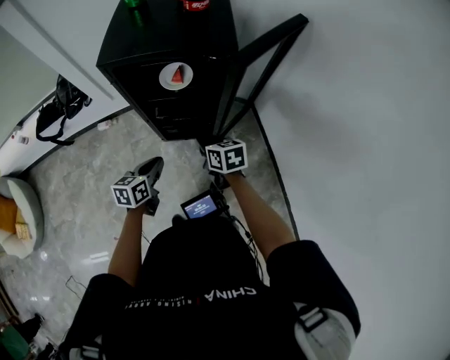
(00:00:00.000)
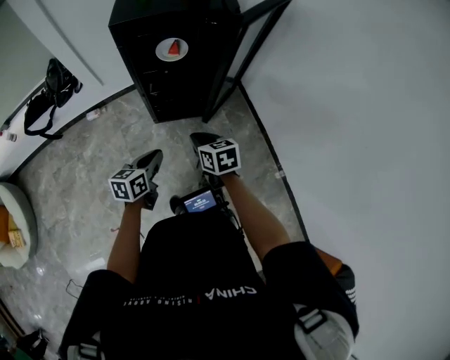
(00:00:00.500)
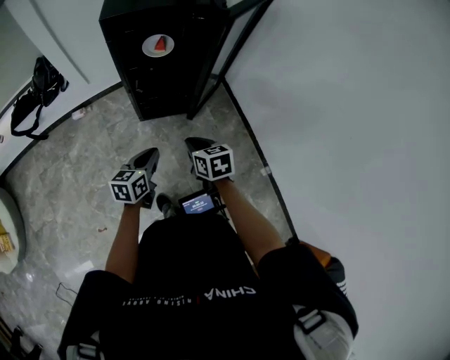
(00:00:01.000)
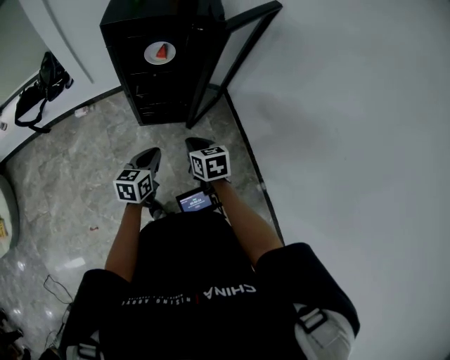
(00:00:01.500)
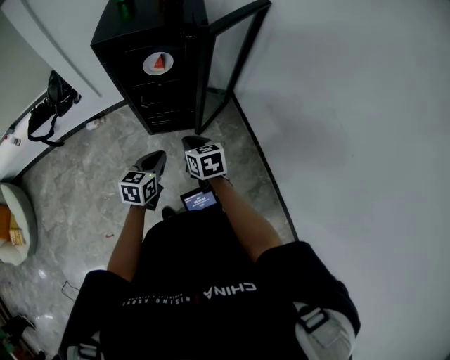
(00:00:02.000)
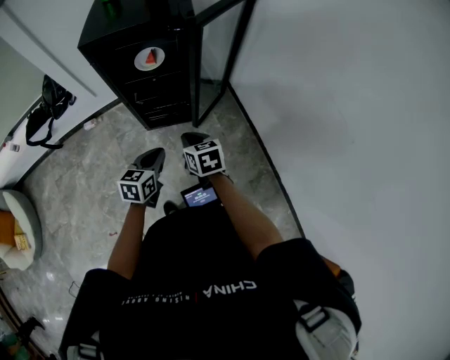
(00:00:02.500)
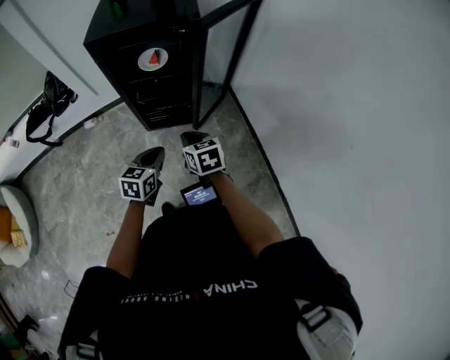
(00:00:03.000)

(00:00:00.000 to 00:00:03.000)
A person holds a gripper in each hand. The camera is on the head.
00:00:00.000 - 00:00:01.500: The grippers both shift backward by about 15 cm.
00:00:01.500 - 00:00:03.000: There are only small adjustments of the grippers.

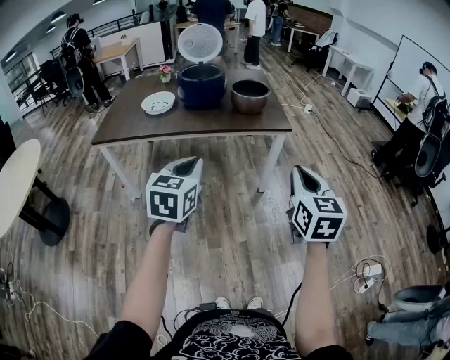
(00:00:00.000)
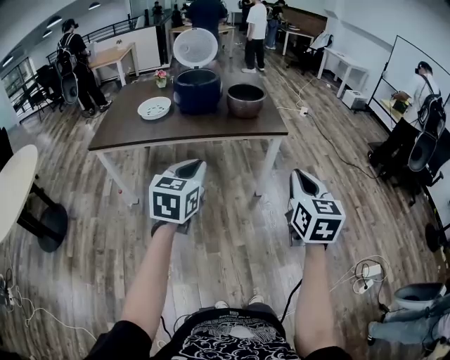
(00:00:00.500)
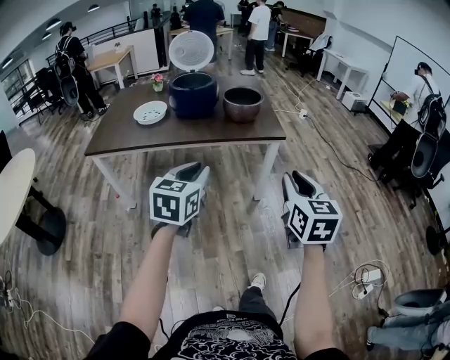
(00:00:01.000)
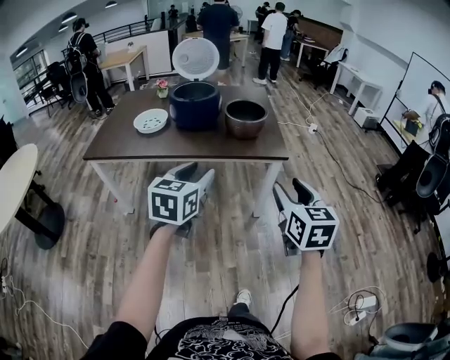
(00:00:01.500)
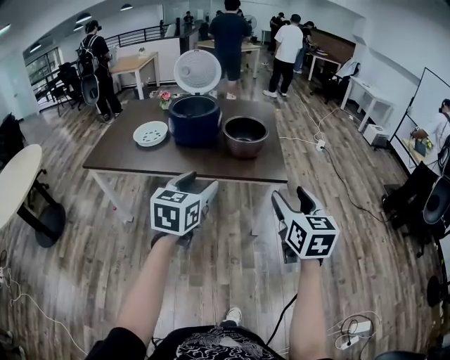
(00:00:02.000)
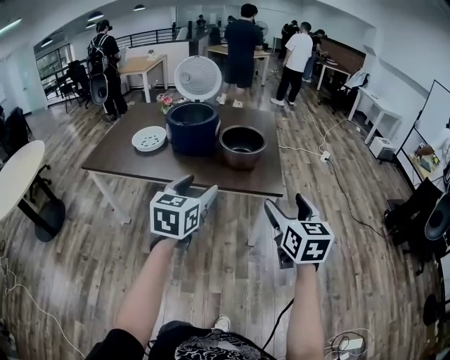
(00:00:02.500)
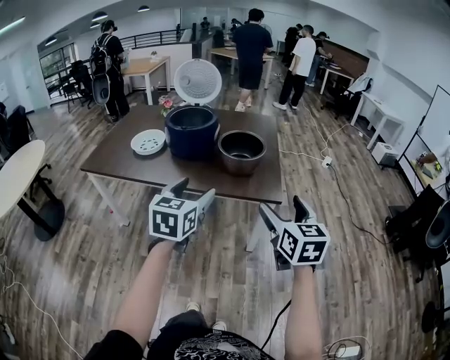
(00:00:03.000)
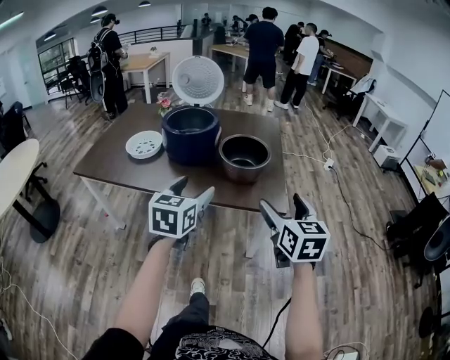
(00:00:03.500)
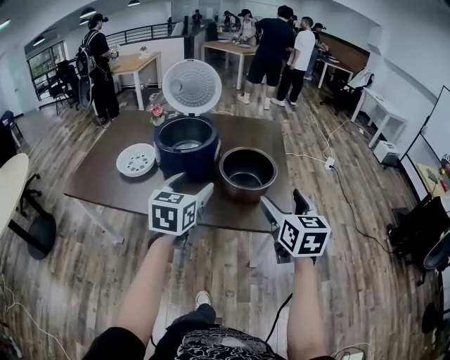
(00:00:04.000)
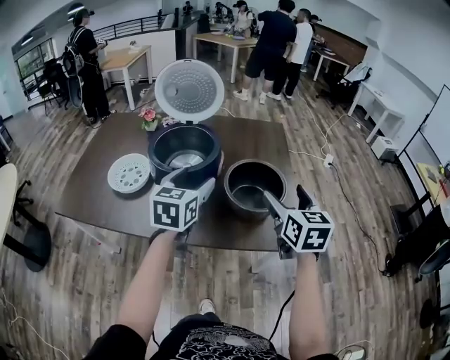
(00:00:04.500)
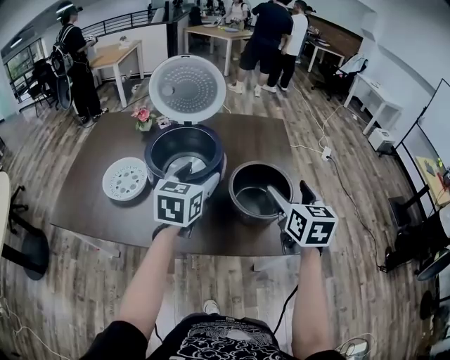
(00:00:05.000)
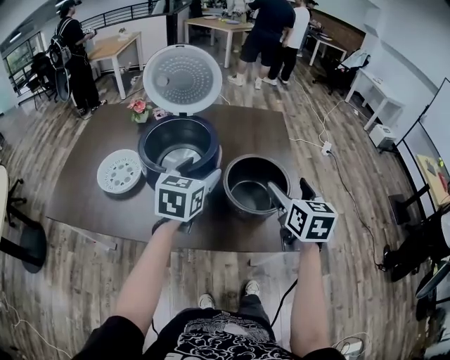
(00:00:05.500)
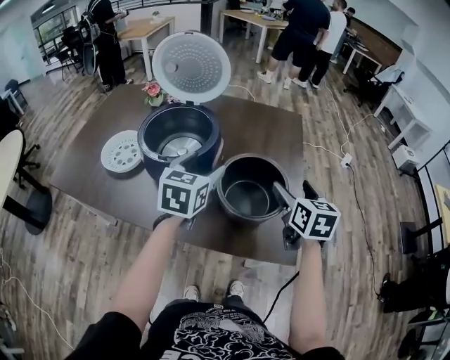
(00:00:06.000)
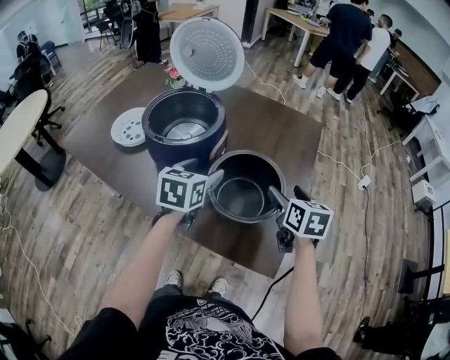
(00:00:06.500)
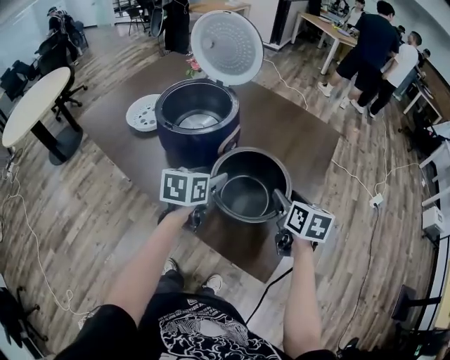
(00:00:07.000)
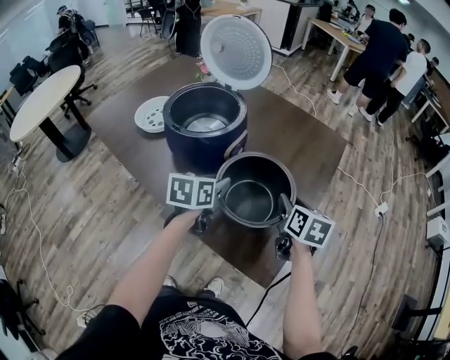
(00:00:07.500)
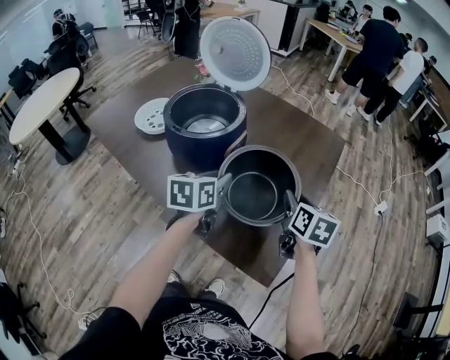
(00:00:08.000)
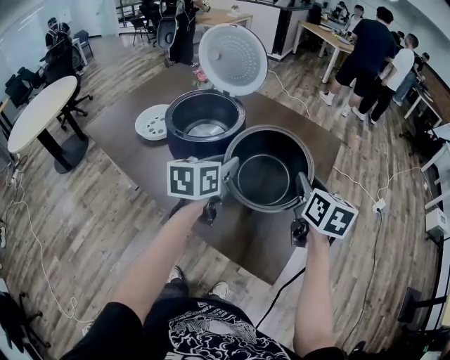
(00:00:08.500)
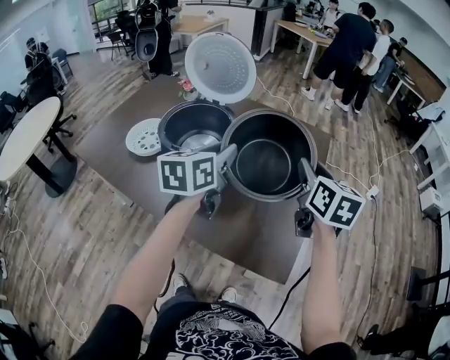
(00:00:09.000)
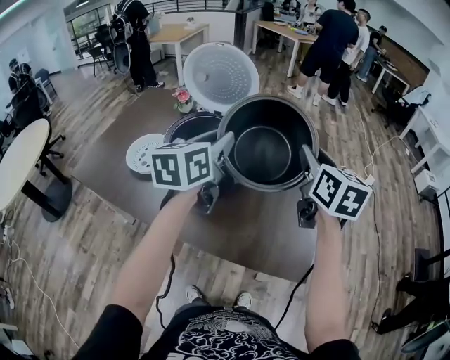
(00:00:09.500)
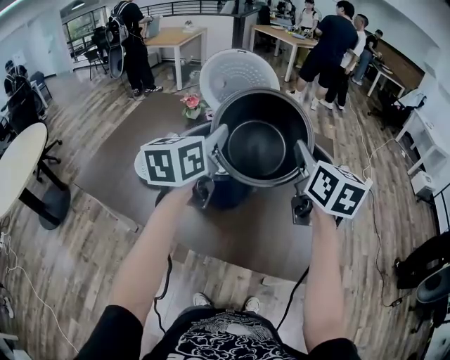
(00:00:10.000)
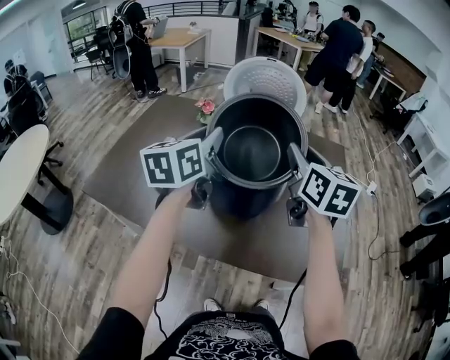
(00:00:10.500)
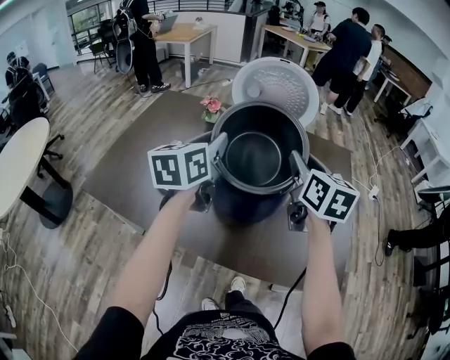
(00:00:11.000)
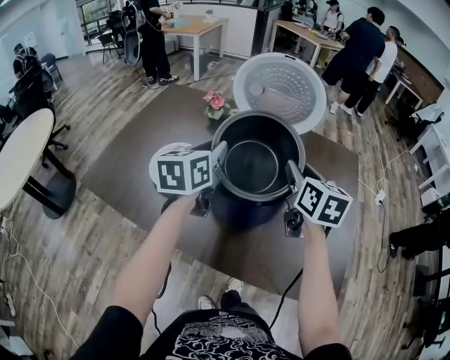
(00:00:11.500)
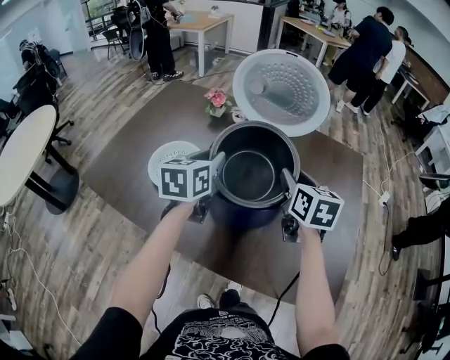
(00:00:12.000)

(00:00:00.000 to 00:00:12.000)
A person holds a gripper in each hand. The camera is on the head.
00:00:00.000 - 00:00:02.000: The right gripper shifts roughly 20 cm forward, and opens, while the left gripper heads forward and to the right, covering approximately 20 cm, and opens up.
00:00:02.000 - 00:00:04.000: Both grippers travel together forward, about 25 cm.
00:00:04.000 - 00:00:06.000: Both grippers move forward, roughly 20 cm.
00:00:06.000 - 00:00:08.000: The right gripper goes roughly 10 cm downward and forward, and closes, while the left gripper moves downward, about 10 cm, changes its angle by some 30 degrees, and closes up.
00:00:08.000 - 00:00:10.000: The two grippers go approximately 25 cm upward and to the left. The right gripper turns by some 30 degrees. Meanwhile the left gripper turns by some 30 degrees.
00:00:10.000 - 00:00:12.000: The grippers both shift downward, to the left and forward by some 20 cm.

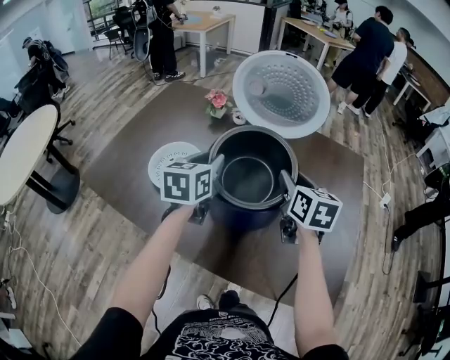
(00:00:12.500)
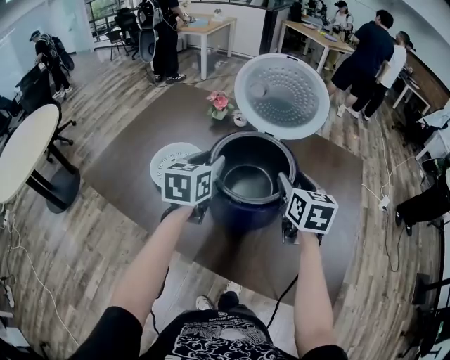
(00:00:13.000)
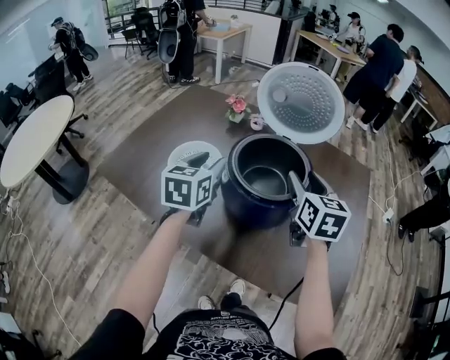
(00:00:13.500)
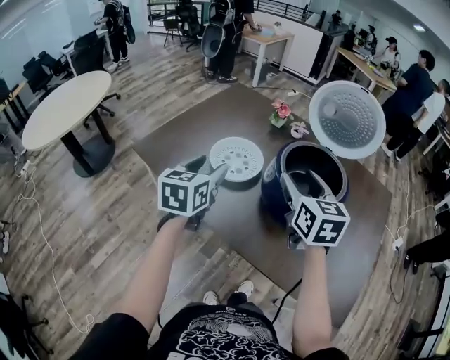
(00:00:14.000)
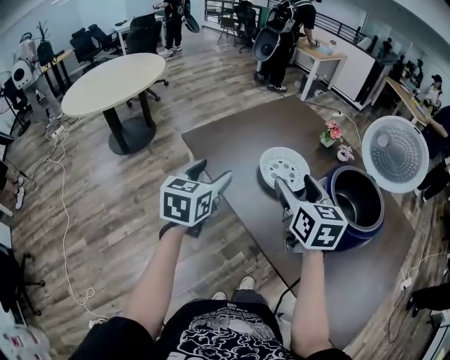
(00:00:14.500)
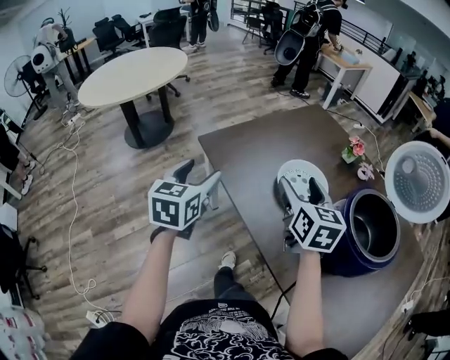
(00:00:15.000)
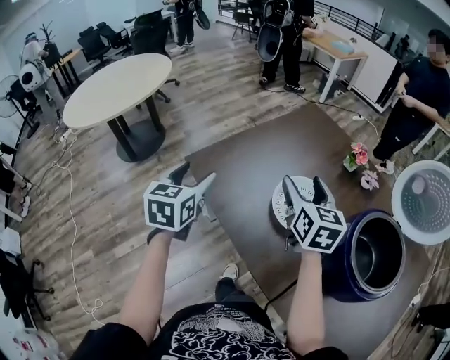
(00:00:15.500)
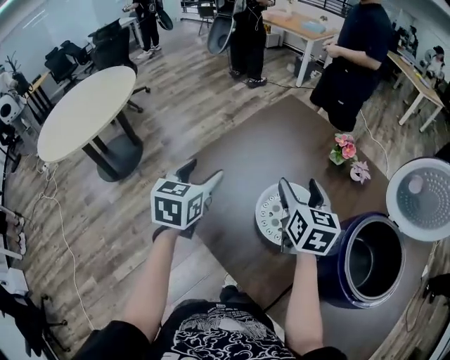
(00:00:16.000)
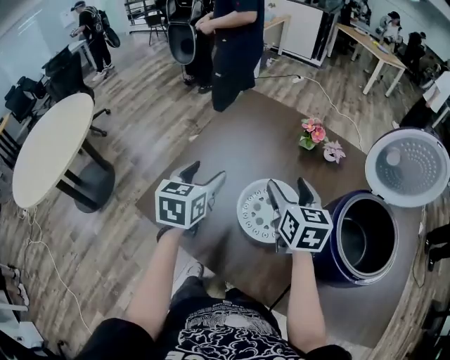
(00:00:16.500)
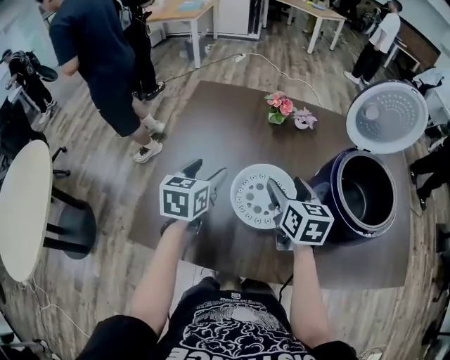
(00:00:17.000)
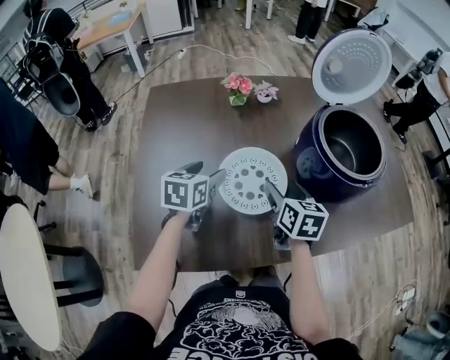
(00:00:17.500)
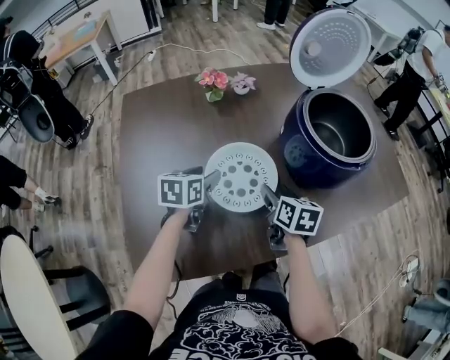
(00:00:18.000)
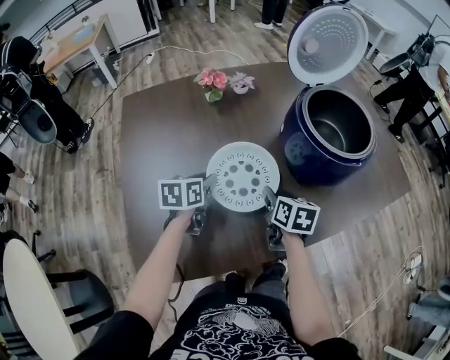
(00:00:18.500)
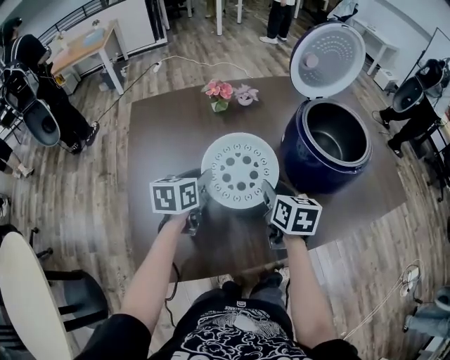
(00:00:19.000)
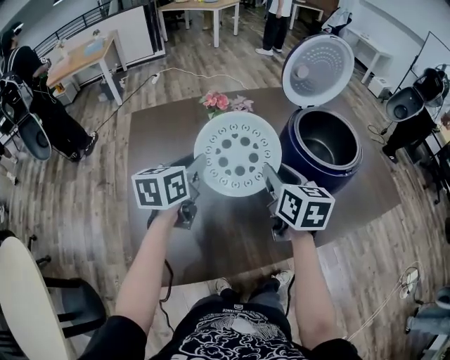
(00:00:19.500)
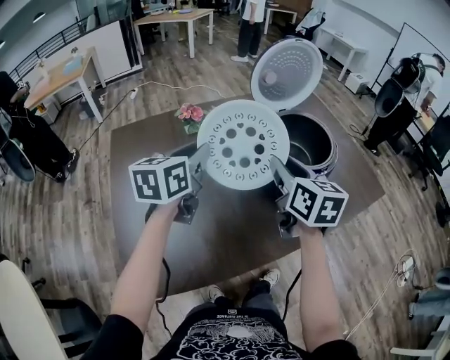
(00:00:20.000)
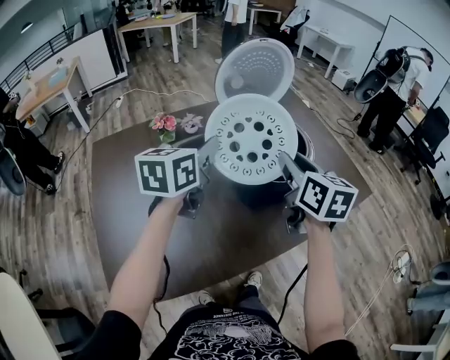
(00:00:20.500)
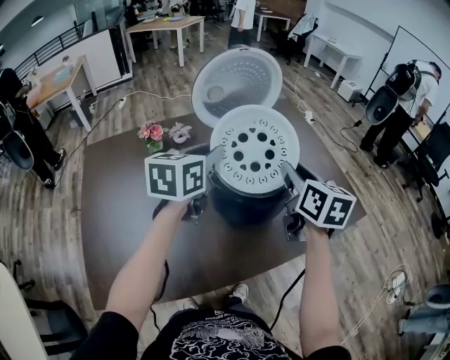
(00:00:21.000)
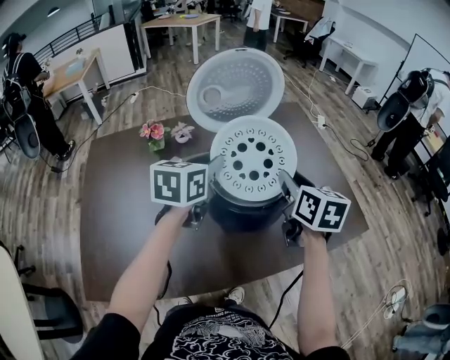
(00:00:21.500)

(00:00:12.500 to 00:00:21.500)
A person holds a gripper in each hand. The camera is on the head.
00:00:12.500 - 00:00:14.500: The right gripper ends up approximately 35 cm from where it was, rotates roughly 30 degrees, and opens; the left gripper ends up approximately 35 cm from where it was, rotates roughly 30 degrees, and opens up.
00:00:14.500 - 00:00:17.000: The left gripper shifts by some 35 cm, and turns by approximately 40 degrees. The right gripper changes place by some 20 cm, and turns by some 40 degrees.
00:00:17.000 - 00:00:19.500: The right gripper goes downward and returns, about 10 cm each way, changes its angle by some 20 degrees, and closes its fingers, while the left gripper travels downward and back again, about 10 cm each way, changes its angle by roughly 30 degrees, and closes.
00:00:19.500 - 00:00:21.500: Both grippers move to the right and forward, about 10 cm.

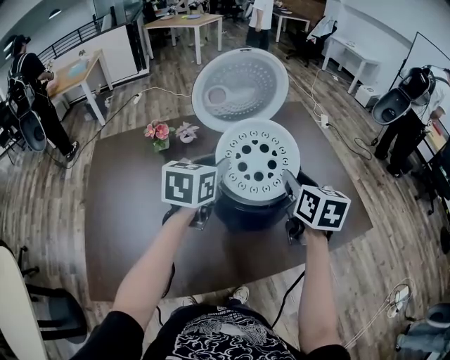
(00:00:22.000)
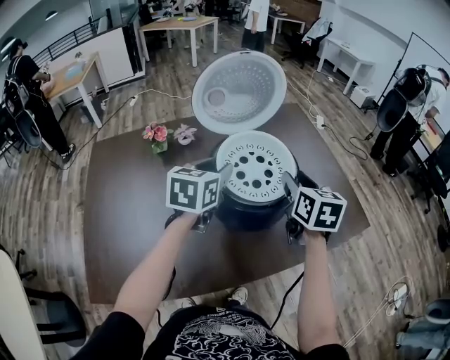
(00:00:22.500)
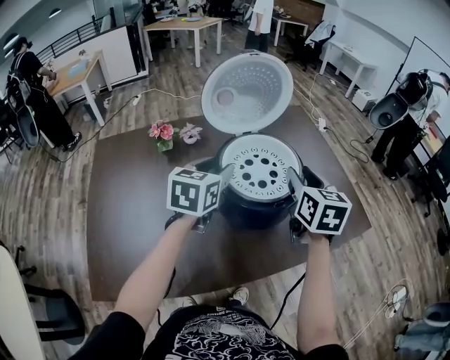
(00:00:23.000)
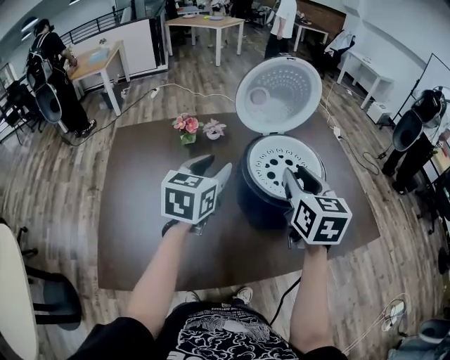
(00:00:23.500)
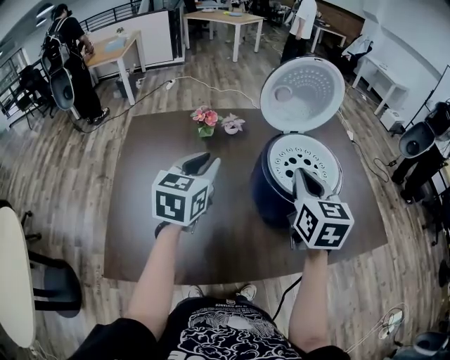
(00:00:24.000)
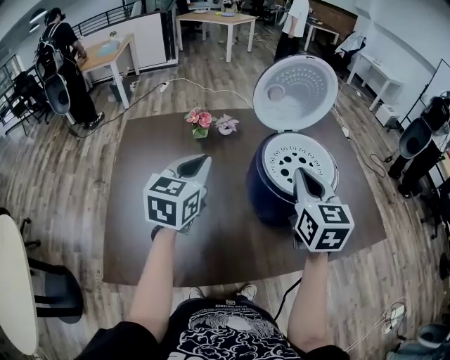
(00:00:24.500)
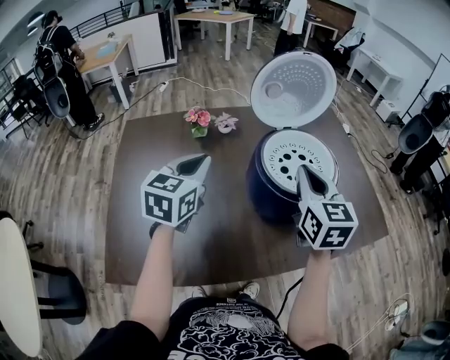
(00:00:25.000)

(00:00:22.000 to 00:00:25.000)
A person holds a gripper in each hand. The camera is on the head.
00:00:22.000 - 00:00:23.500: The grippers both shift to the left and backward by some 10 cm.
00:00:23.500 - 00:00:25.000: The left gripper moves to the left, about 5 cm, and closes.
